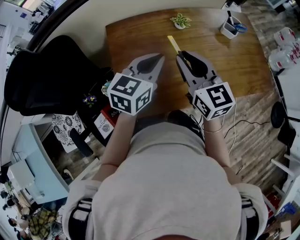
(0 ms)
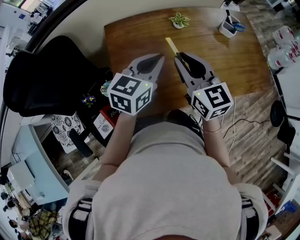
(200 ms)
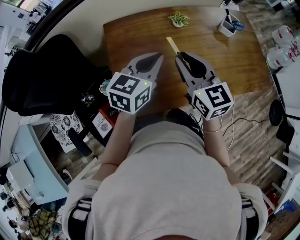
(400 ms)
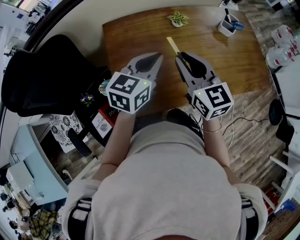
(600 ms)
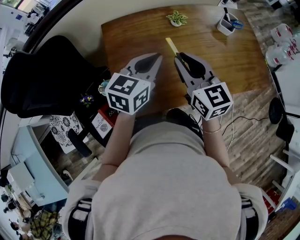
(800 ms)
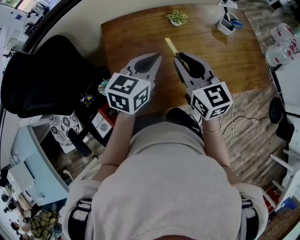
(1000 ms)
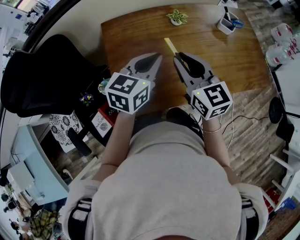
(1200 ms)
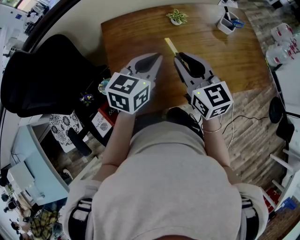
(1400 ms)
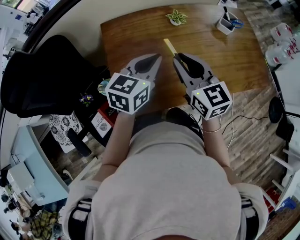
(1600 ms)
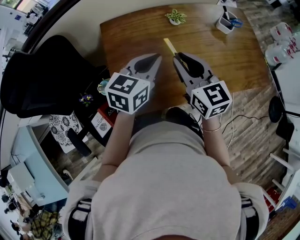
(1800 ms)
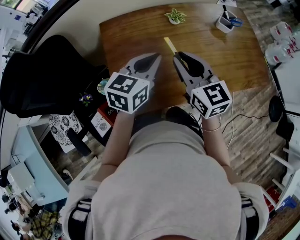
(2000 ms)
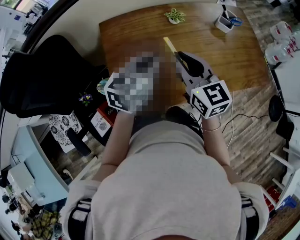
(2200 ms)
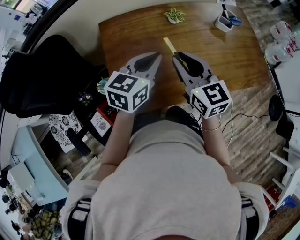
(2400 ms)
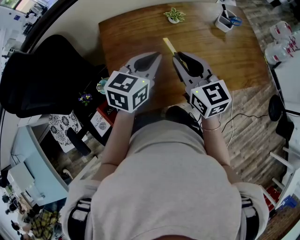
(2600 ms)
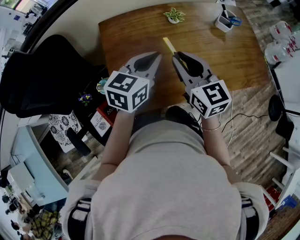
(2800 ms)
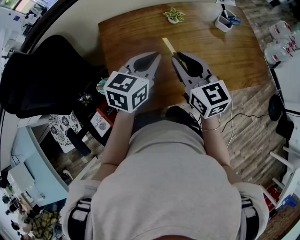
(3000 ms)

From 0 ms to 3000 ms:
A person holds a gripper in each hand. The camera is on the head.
From 0 ms to 1600 ms: The grippers stay close to where they were, moving slightly.
From 1600 ms to 3000 ms: The two grippers keep their place.

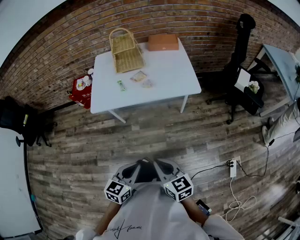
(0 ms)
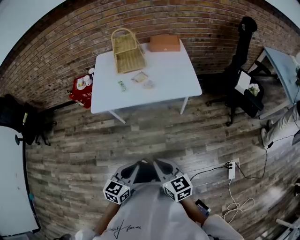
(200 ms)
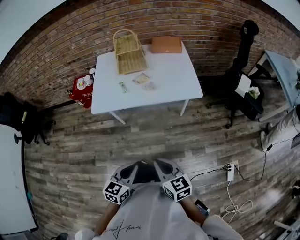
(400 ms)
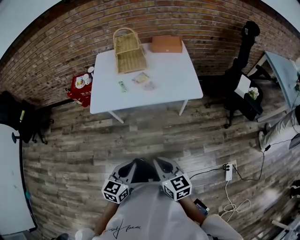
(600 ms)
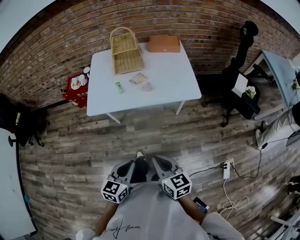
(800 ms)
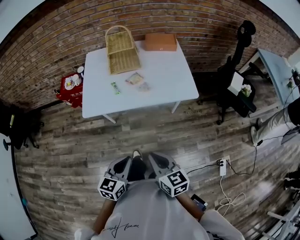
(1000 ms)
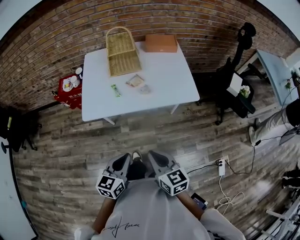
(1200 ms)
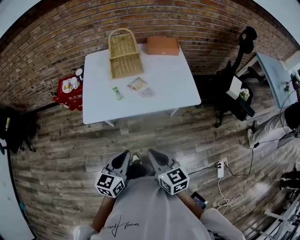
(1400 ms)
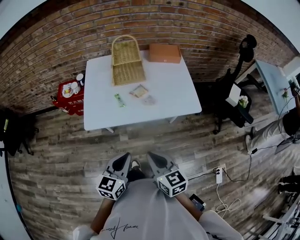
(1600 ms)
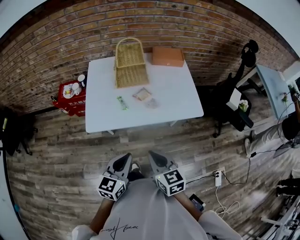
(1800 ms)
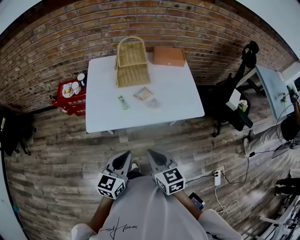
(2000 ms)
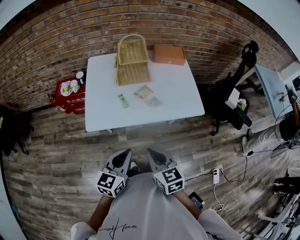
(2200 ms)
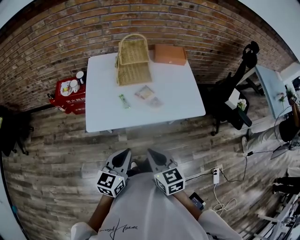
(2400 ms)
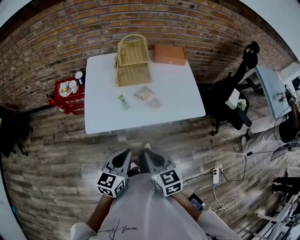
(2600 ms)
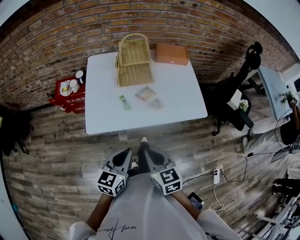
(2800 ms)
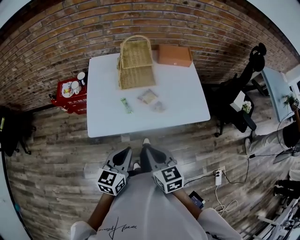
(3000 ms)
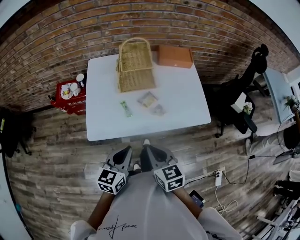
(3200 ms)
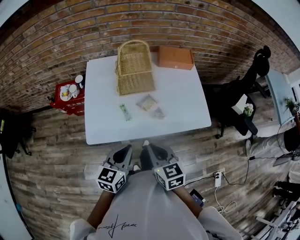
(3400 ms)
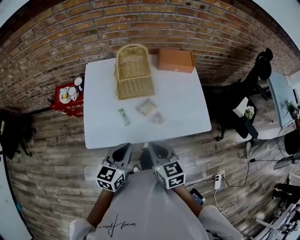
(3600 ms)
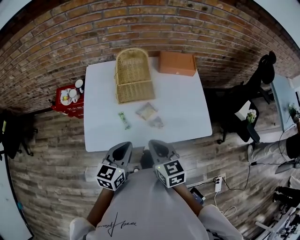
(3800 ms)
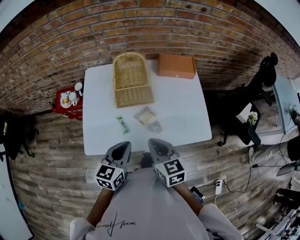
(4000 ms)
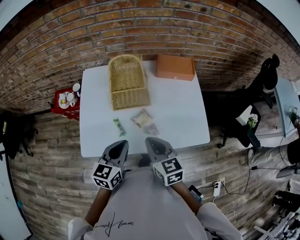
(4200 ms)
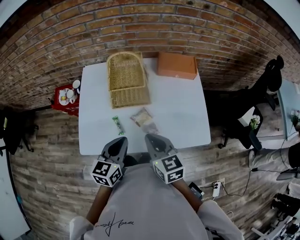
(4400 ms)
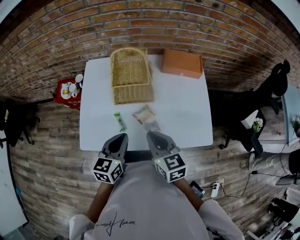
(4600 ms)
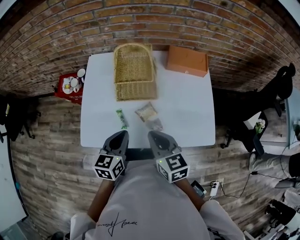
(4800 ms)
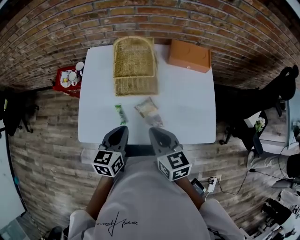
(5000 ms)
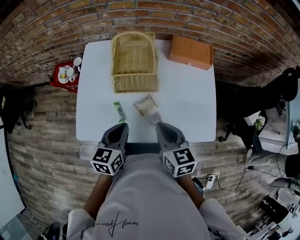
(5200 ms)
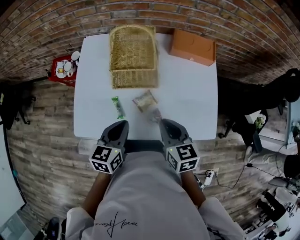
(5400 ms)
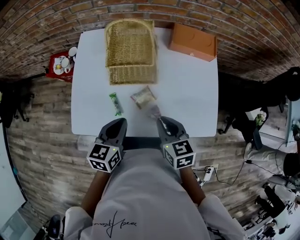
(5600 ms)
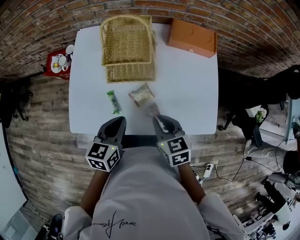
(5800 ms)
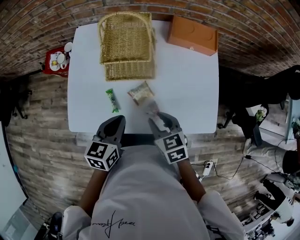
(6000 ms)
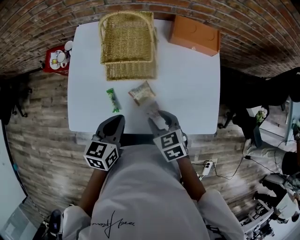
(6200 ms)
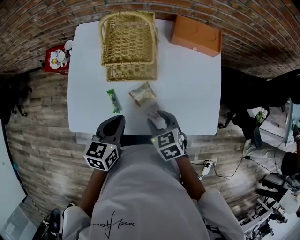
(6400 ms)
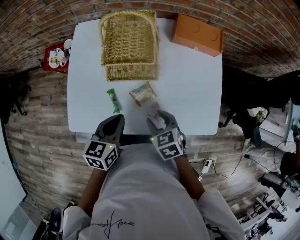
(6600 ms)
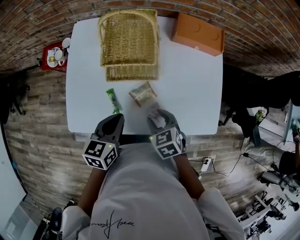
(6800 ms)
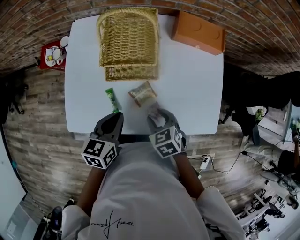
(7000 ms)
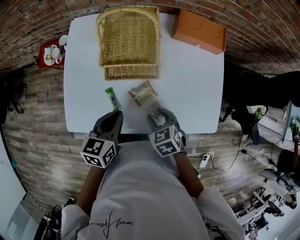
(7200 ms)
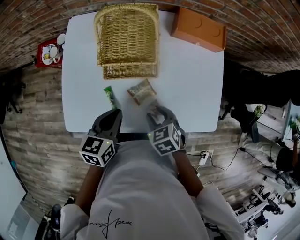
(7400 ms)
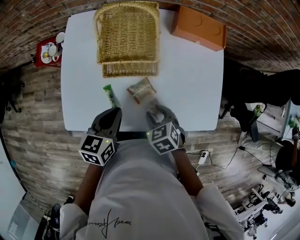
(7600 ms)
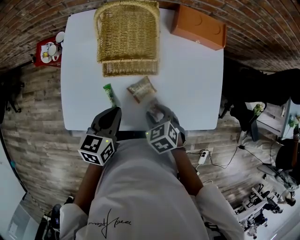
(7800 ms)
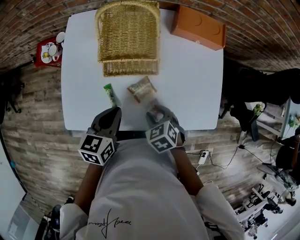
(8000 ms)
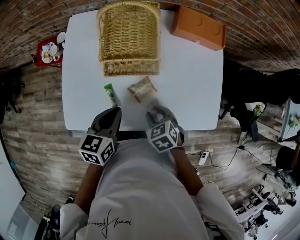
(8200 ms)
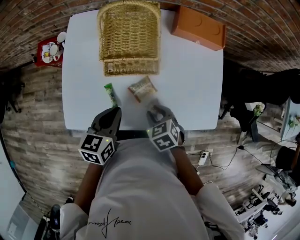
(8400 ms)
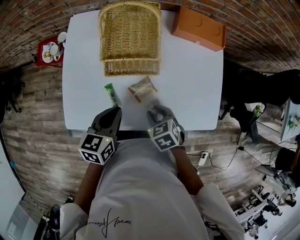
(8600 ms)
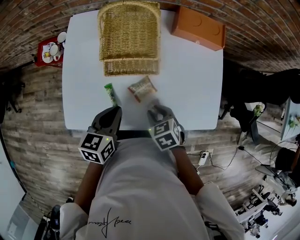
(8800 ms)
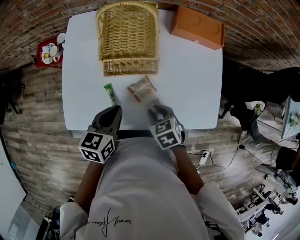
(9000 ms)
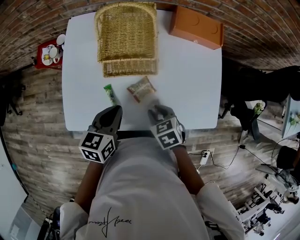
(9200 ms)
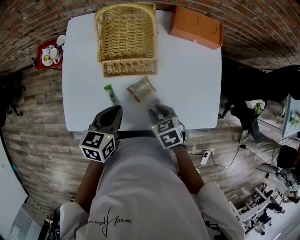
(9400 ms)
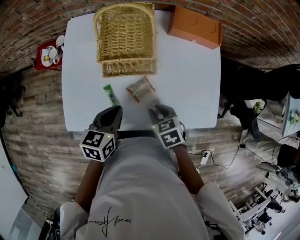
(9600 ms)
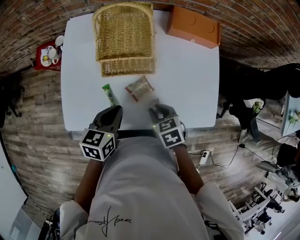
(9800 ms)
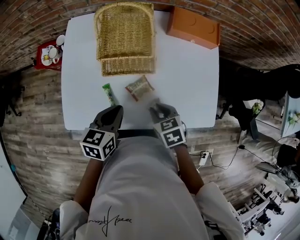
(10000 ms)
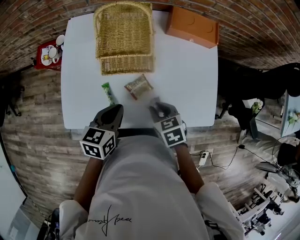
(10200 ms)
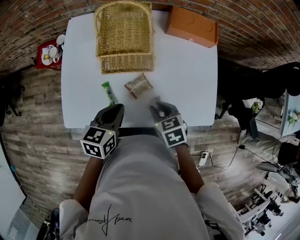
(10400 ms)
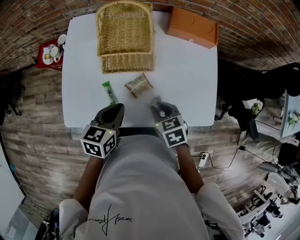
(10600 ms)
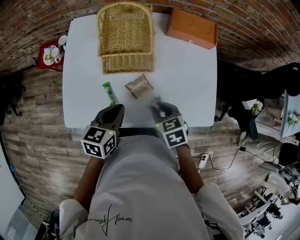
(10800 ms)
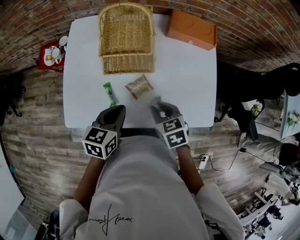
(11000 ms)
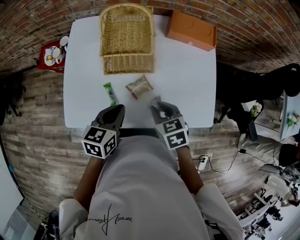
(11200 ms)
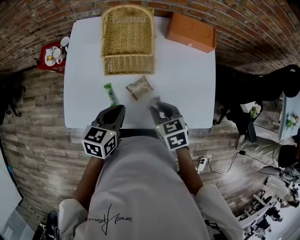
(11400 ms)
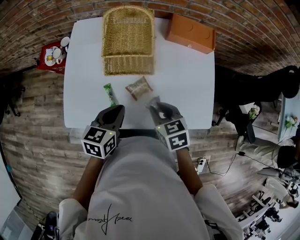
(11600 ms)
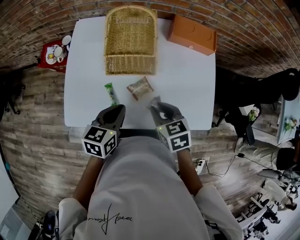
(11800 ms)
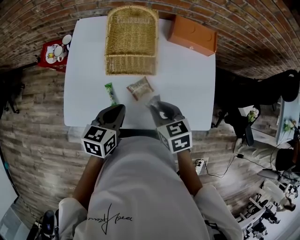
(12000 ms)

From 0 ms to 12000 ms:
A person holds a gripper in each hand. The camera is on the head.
From 0 ms to 1600 ms: Both grippers travel together forward and to the left, about 20 cm.
From 1600 ms to 3000 ms: Both grippers travel together forward, about 10 cm.
From 3000 ms to 4400 ms: Both grippers move forward, roughly 20 cm.
From 4400 ms to 6000 ms: The right gripper moves downward, roughly 10 cm, turns by about 20 degrees, and opens its fingers; the left gripper goes roughly 5 cm downward.
From 6000 ms to 7600 ms: The right gripper heads downward, covering roughly 5 cm, and changes its angle by some 20 degrees.
From 7600 ms to 10400 ms: There are only small adjustments of the grippers.
From 10400 ms to 12000 ms: The right gripper travels upward by roughly 5 cm.

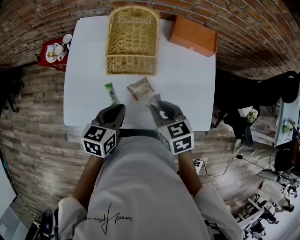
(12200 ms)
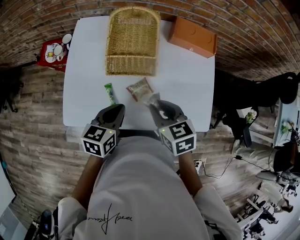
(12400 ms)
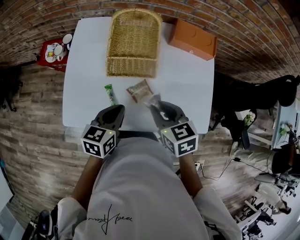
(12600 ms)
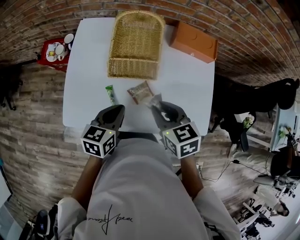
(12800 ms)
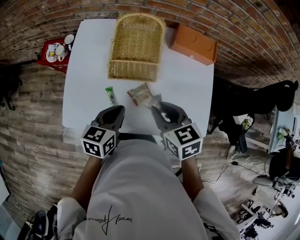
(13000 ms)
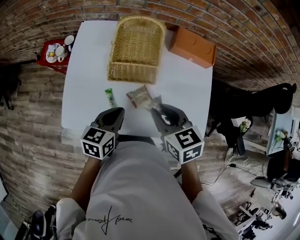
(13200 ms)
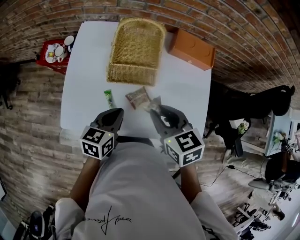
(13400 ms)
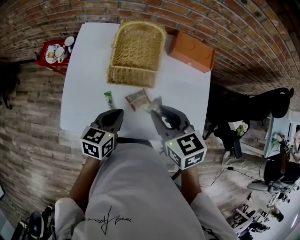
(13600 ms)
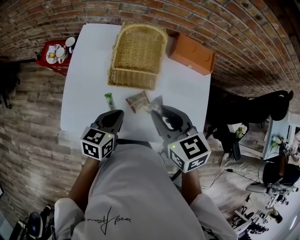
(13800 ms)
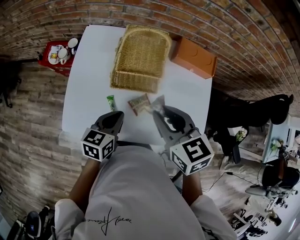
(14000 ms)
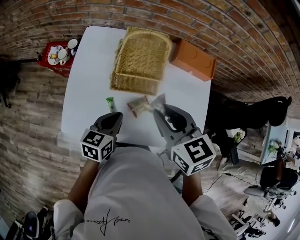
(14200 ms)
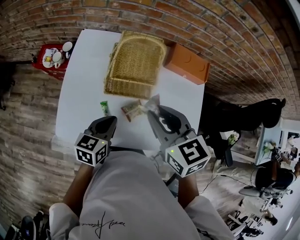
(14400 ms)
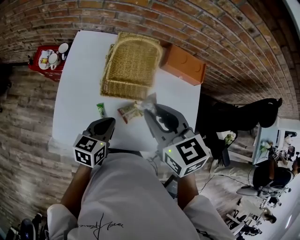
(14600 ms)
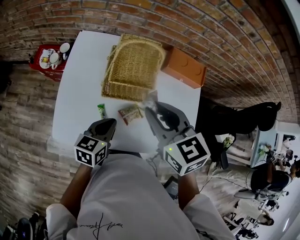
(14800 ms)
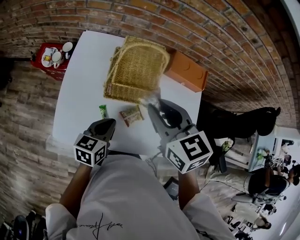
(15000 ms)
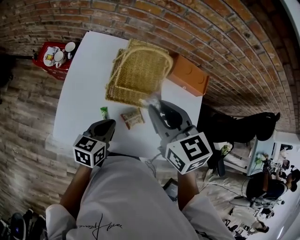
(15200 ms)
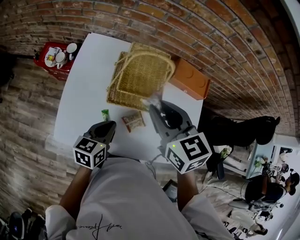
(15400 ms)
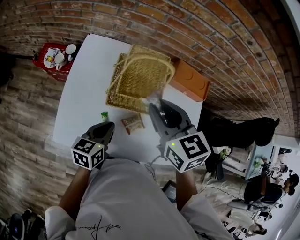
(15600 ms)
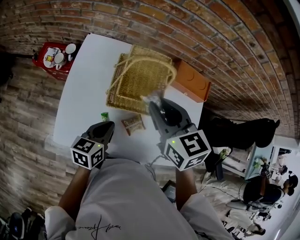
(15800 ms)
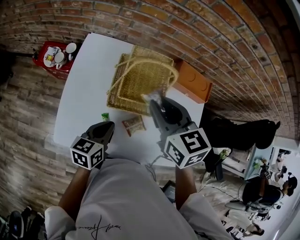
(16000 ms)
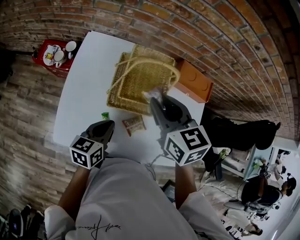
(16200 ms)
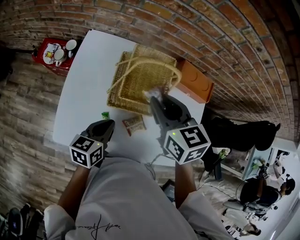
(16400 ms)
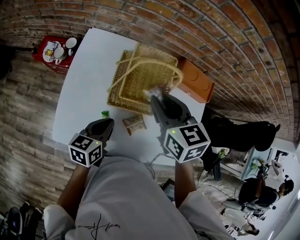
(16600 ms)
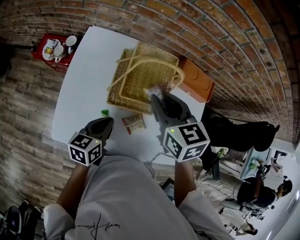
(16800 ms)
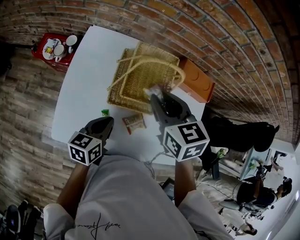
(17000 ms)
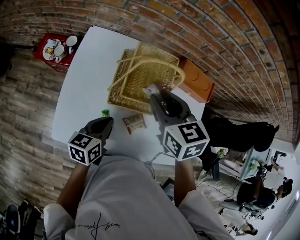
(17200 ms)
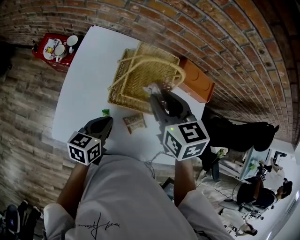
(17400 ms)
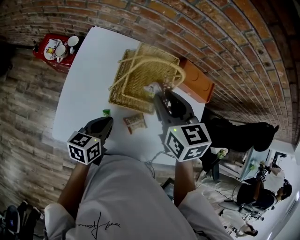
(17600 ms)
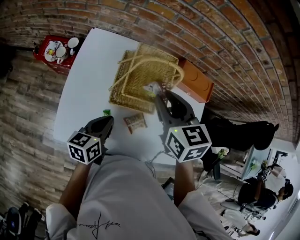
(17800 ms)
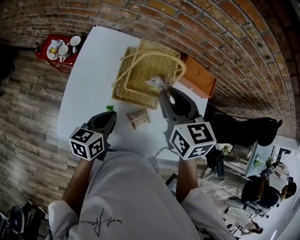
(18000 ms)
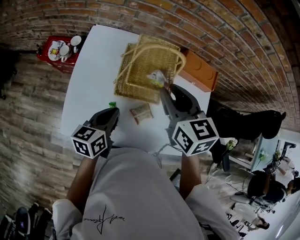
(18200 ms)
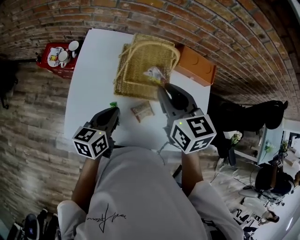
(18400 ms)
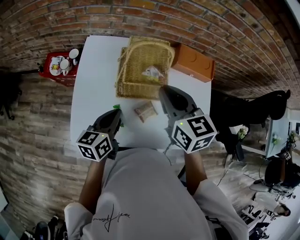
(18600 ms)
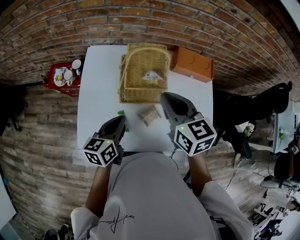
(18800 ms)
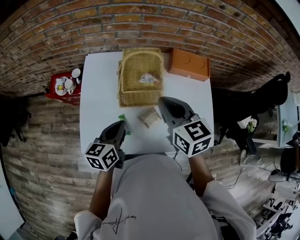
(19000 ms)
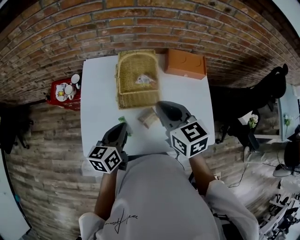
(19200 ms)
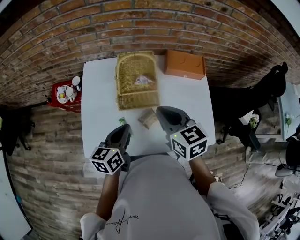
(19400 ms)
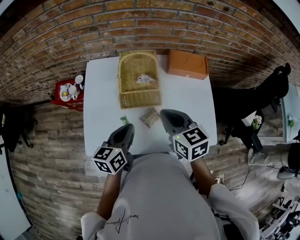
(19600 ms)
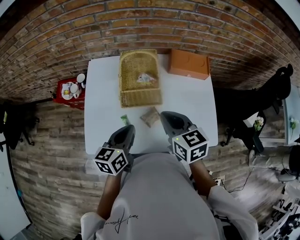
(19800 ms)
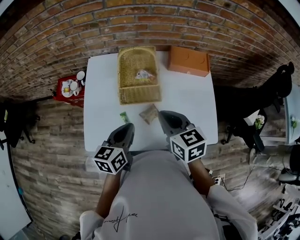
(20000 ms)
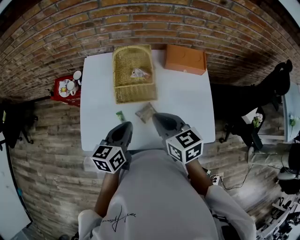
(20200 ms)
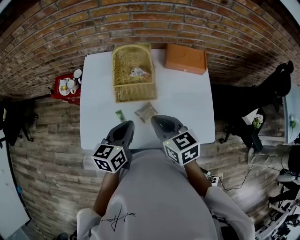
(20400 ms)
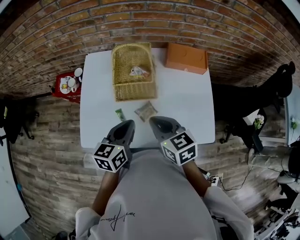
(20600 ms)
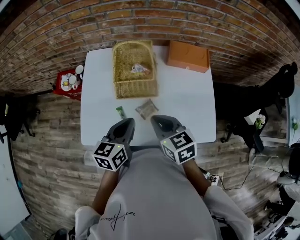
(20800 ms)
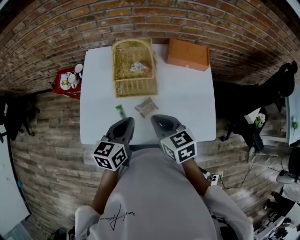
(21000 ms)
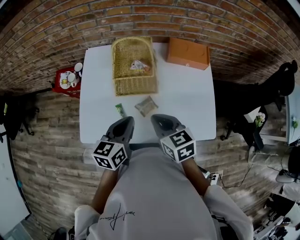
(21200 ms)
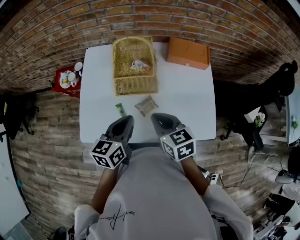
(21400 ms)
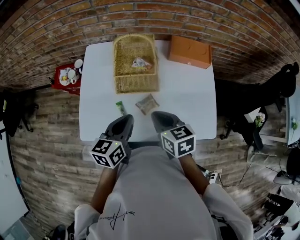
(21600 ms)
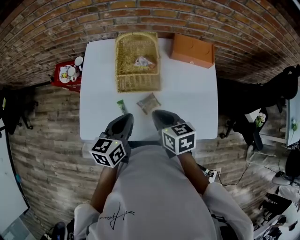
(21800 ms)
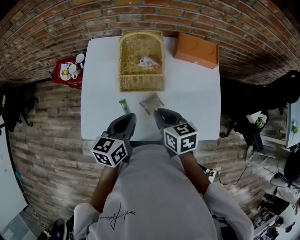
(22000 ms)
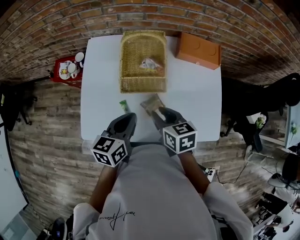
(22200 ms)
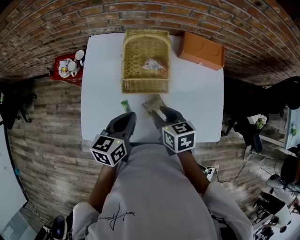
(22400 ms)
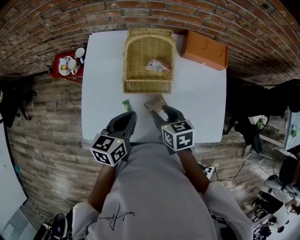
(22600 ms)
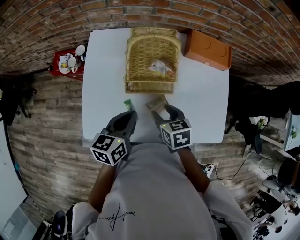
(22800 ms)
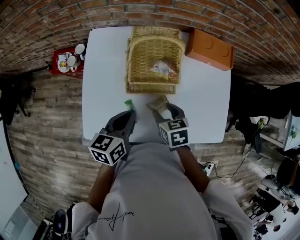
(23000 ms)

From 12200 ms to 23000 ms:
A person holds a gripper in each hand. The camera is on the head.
From 12200 ms to 13800 ms: The right gripper heads upward, covering some 10 cm.
From 13800 ms to 15200 ms: The right gripper moves forward, some 5 cm.
From 15200 ms to 16800 ms: The right gripper heads forward, covering about 5 cm.
From 16800 ms to 18400 ms: The grippers stay close to where they were, moving slightly.
From 18400 ms to 20000 ms: The right gripper shifts roughly 10 cm backward, while the left gripper shifts by about 5 cm.
From 20000 ms to 21400 ms: The right gripper shifts by approximately 5 cm.
From 21400 ms to 23000 ms: The right gripper heads downward, covering approximately 10 cm, and opens up, while the left gripper shifts by approximately 5 cm.
